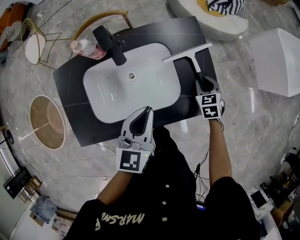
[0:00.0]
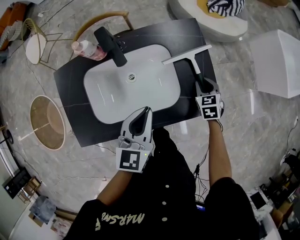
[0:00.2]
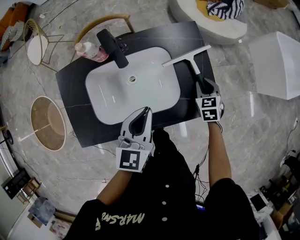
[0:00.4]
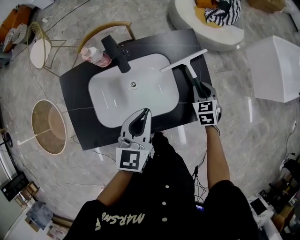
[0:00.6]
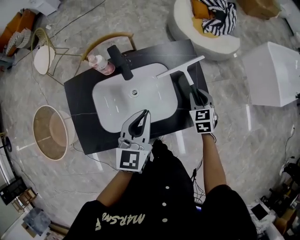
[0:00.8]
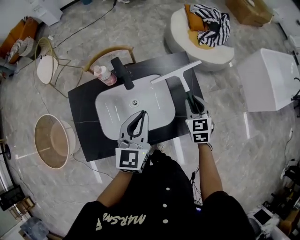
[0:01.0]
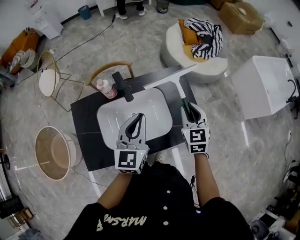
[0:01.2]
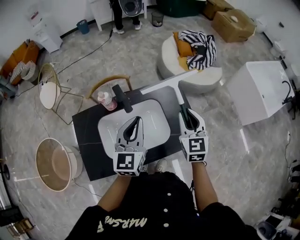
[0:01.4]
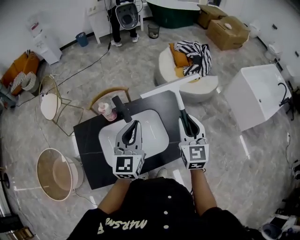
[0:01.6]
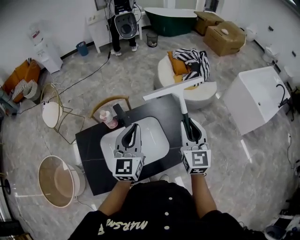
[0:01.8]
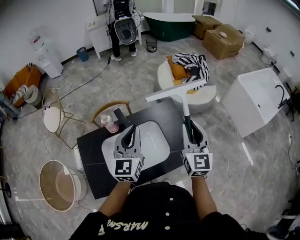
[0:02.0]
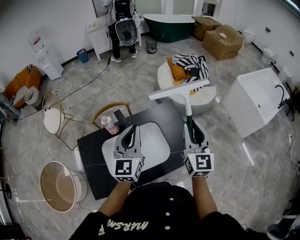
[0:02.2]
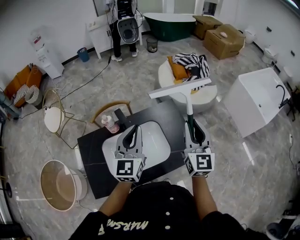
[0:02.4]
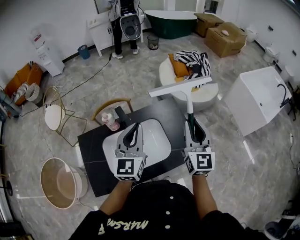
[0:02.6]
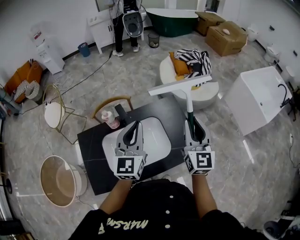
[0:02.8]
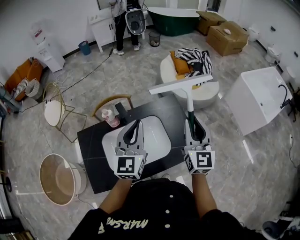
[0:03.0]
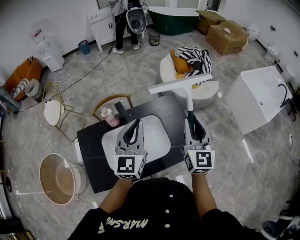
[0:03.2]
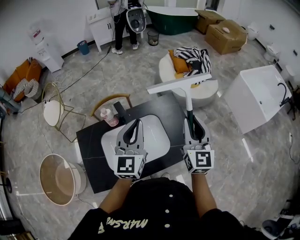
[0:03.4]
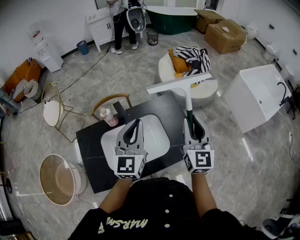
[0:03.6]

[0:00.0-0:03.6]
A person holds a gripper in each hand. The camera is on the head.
0:00.0 to 0:01.8: The left gripper heads upward, covering roughly 20 cm, and changes its angle by approximately 20 degrees. The right gripper shifts about 35 cm upward, and angles its fingers upward, by roughly 50 degrees.
0:01.8 to 0:03.6: The grippers stay close to where they were, moving slightly.

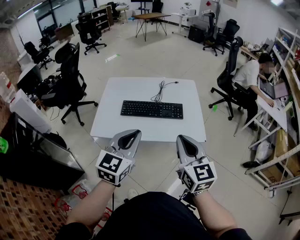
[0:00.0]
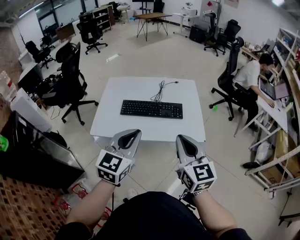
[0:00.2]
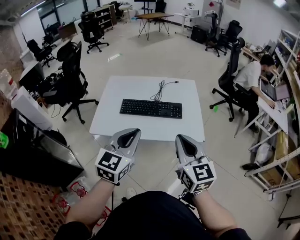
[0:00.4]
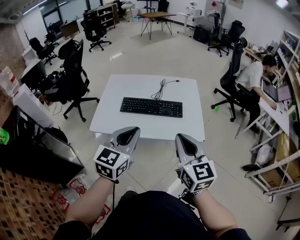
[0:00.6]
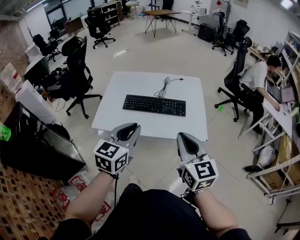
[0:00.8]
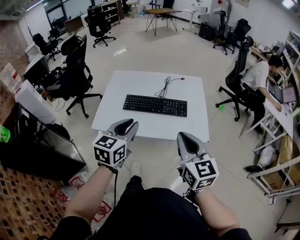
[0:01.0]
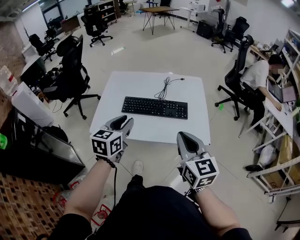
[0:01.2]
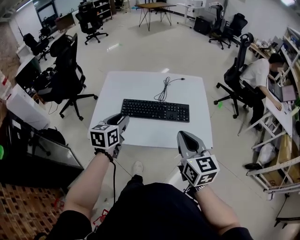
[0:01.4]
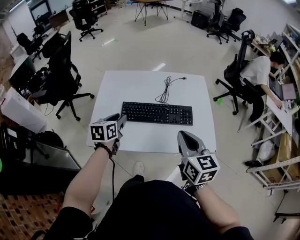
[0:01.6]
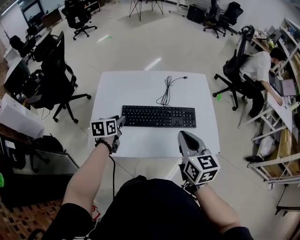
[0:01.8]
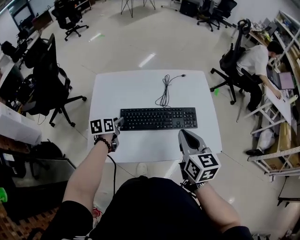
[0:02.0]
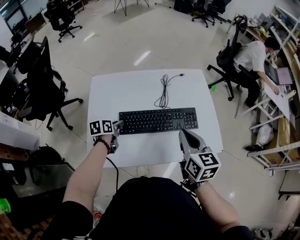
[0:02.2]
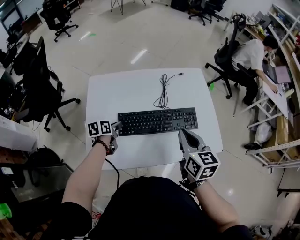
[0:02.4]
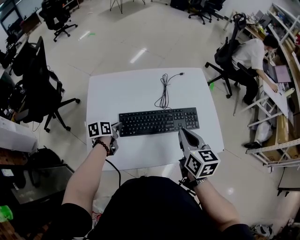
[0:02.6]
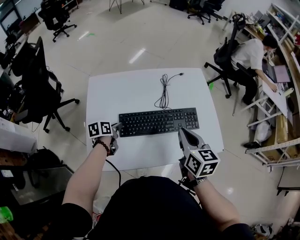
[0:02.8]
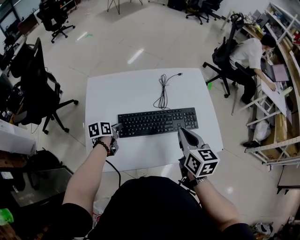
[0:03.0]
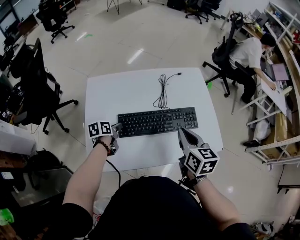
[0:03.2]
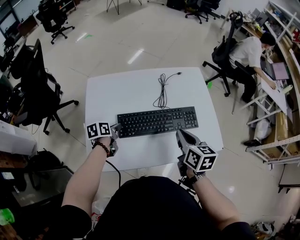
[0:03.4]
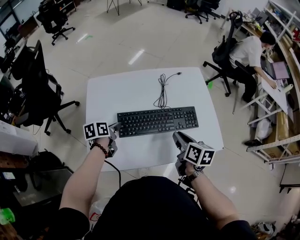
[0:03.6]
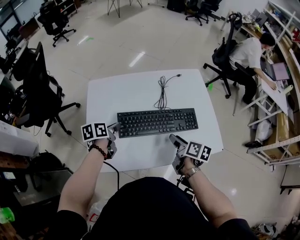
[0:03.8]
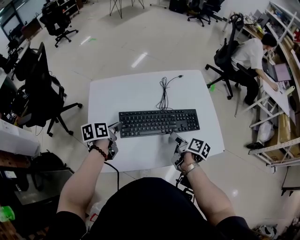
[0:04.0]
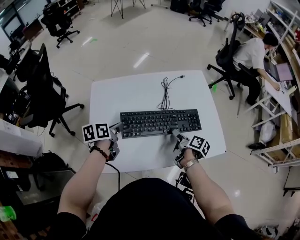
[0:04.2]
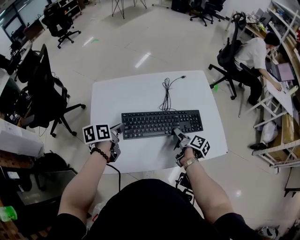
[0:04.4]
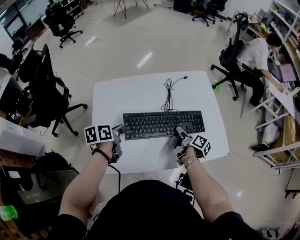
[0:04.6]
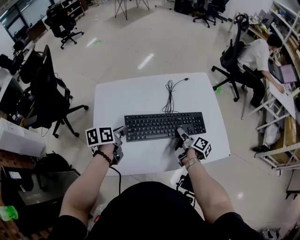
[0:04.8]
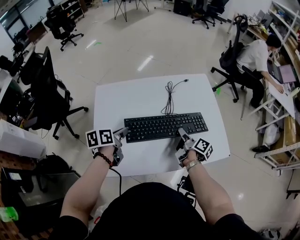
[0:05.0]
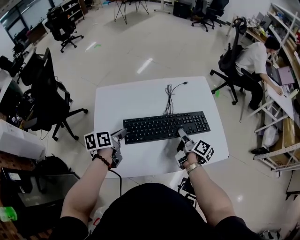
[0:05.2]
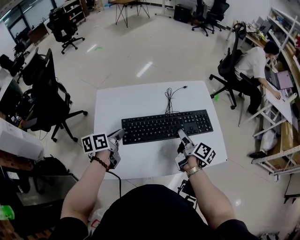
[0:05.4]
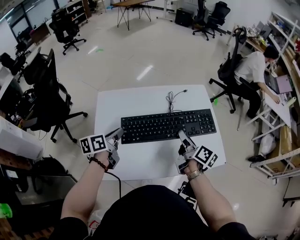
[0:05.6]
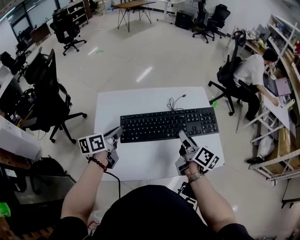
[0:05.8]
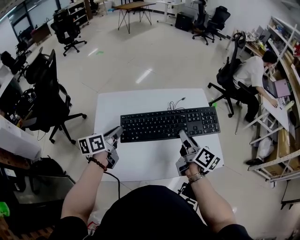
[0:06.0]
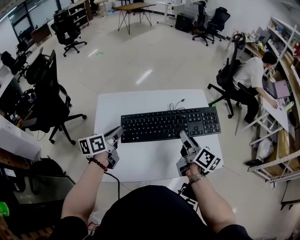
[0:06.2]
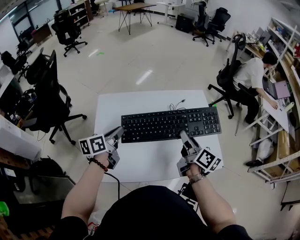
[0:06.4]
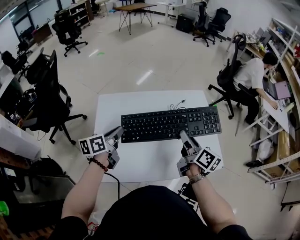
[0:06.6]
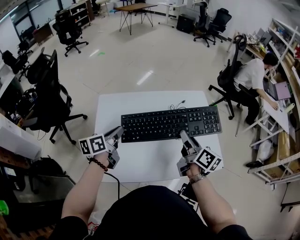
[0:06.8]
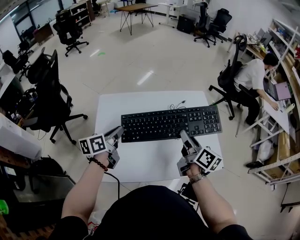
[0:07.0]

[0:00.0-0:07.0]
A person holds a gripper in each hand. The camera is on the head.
0:00.0 to 0:01.4: The left gripper is displaced forward, downward and to the left by approximately 25 cm, rotates approximately 30 degrees, and opens up. The right gripper goes roughly 10 cm forward and downward.
0:01.4 to 0:02.8: The left gripper is displaced downward, forward and to the left by roughly 30 cm, and turns by some 40 degrees, while the right gripper is displaced forward, downward and to the left by roughly 20 cm, and turns by roughly 20 degrees.
0:02.8 to 0:04.2: The right gripper shifts roughly 15 cm downward, rolls clockwise, seen from behind, by about 60 degrees, and opens up. The left gripper shifts roughly 10 cm upward.
0:04.2 to 0:05.6: The right gripper is displaced upward by some 15 cm, and rotates roughly 20 degrees. The left gripper heads upward, covering some 5 cm.
0:05.6 to 0:07.0: The right gripper is displaced upward by roughly 5 cm.

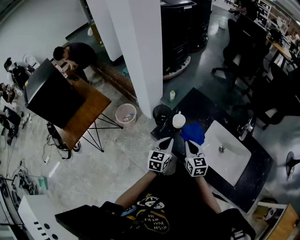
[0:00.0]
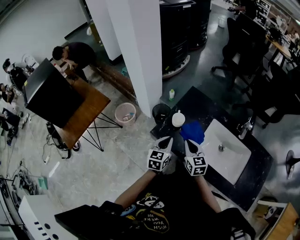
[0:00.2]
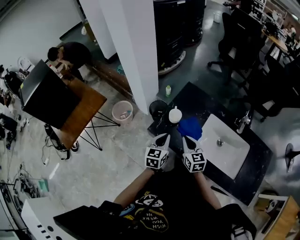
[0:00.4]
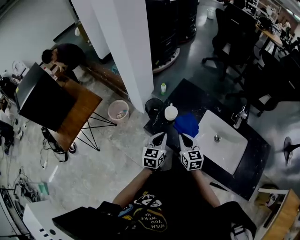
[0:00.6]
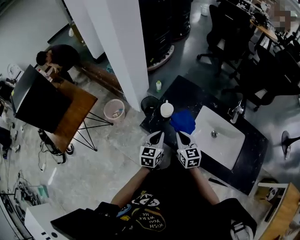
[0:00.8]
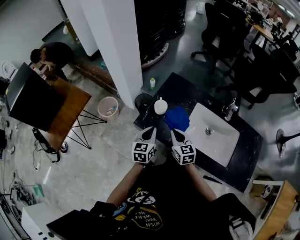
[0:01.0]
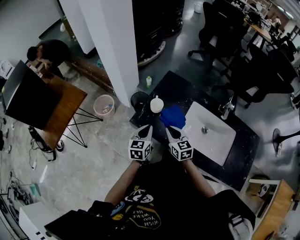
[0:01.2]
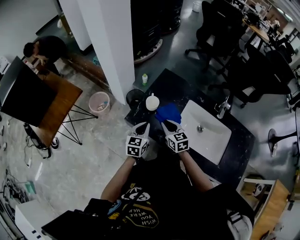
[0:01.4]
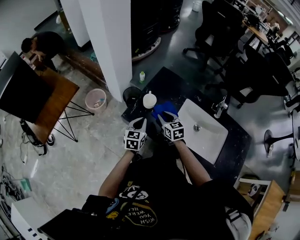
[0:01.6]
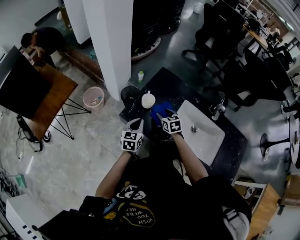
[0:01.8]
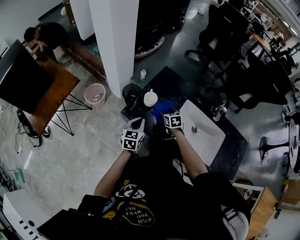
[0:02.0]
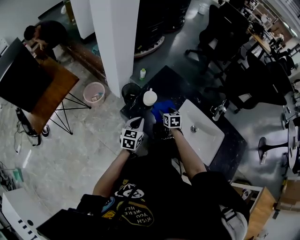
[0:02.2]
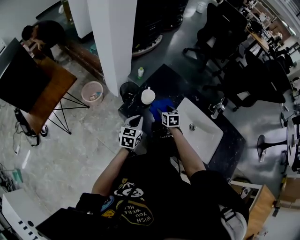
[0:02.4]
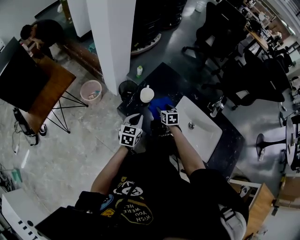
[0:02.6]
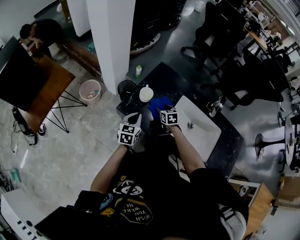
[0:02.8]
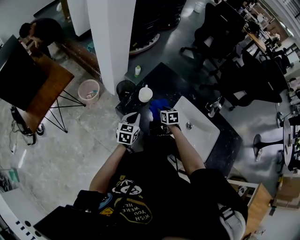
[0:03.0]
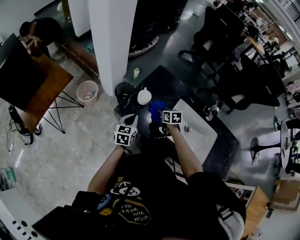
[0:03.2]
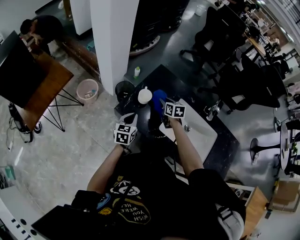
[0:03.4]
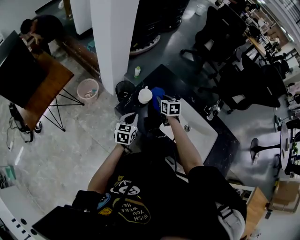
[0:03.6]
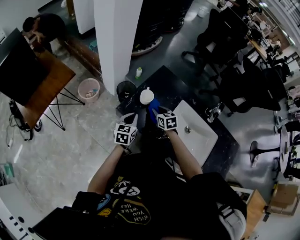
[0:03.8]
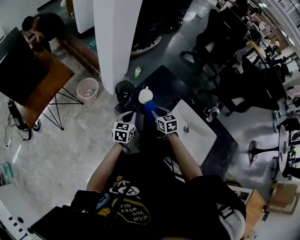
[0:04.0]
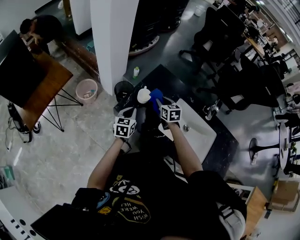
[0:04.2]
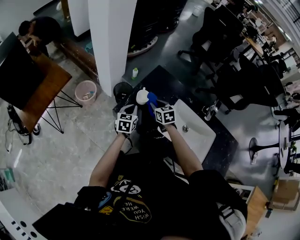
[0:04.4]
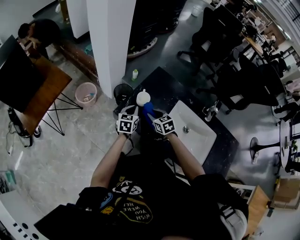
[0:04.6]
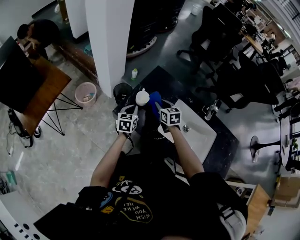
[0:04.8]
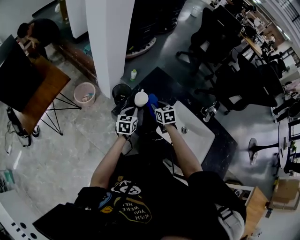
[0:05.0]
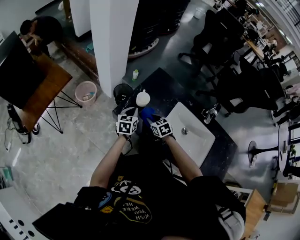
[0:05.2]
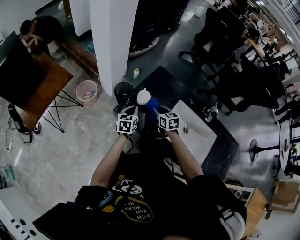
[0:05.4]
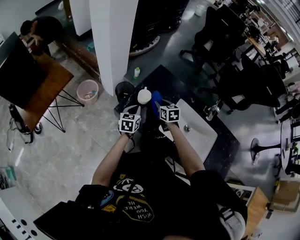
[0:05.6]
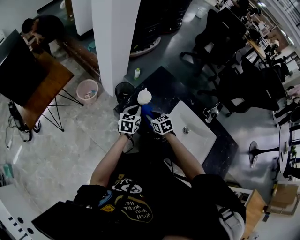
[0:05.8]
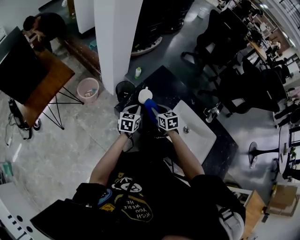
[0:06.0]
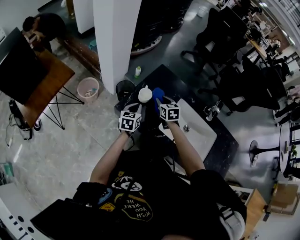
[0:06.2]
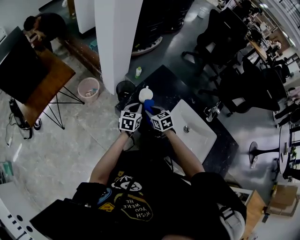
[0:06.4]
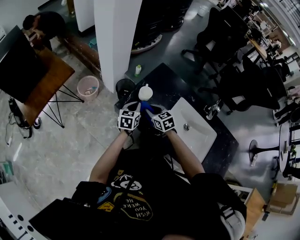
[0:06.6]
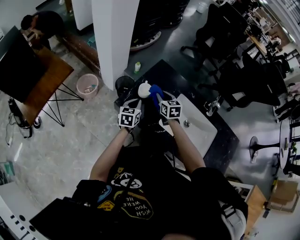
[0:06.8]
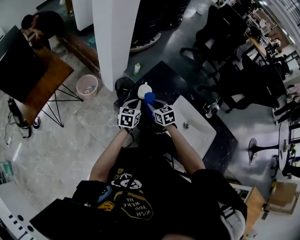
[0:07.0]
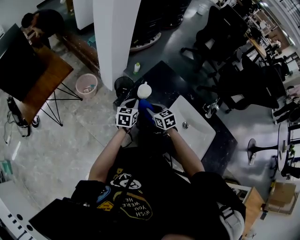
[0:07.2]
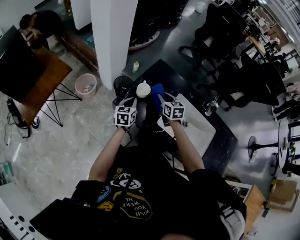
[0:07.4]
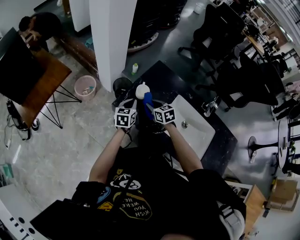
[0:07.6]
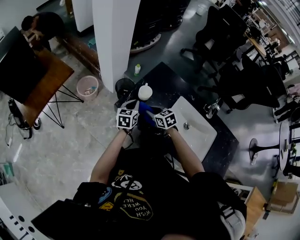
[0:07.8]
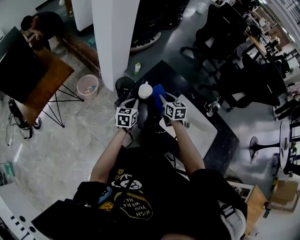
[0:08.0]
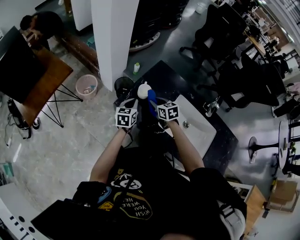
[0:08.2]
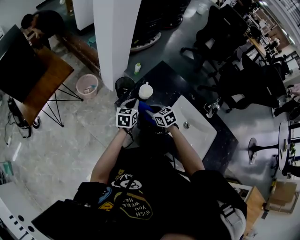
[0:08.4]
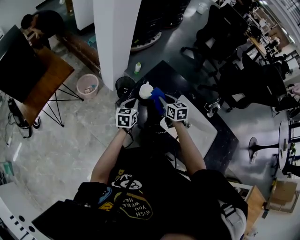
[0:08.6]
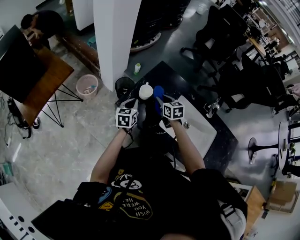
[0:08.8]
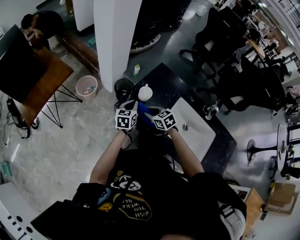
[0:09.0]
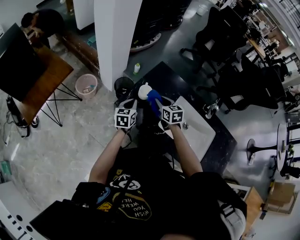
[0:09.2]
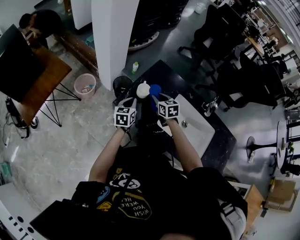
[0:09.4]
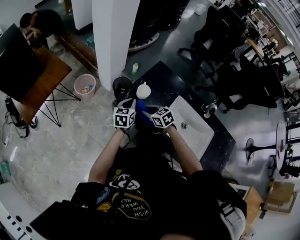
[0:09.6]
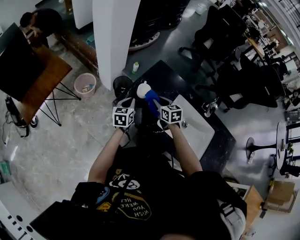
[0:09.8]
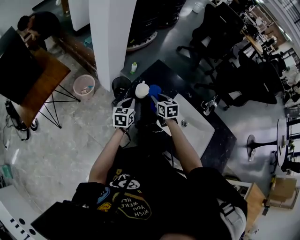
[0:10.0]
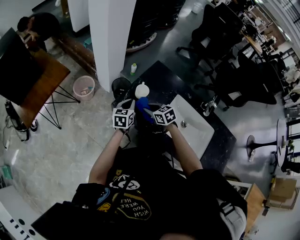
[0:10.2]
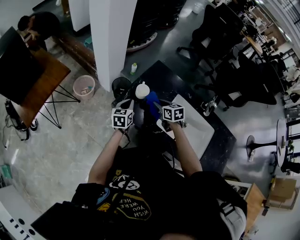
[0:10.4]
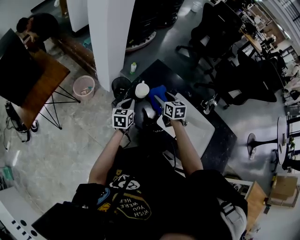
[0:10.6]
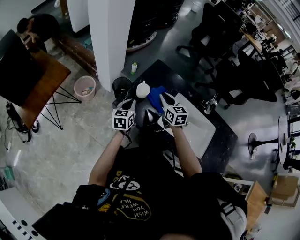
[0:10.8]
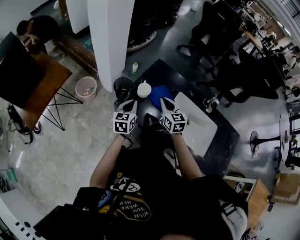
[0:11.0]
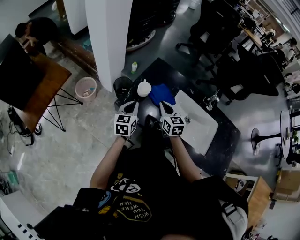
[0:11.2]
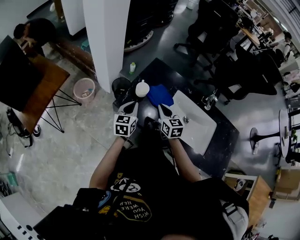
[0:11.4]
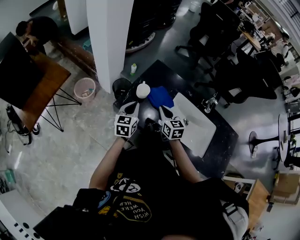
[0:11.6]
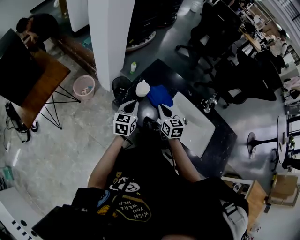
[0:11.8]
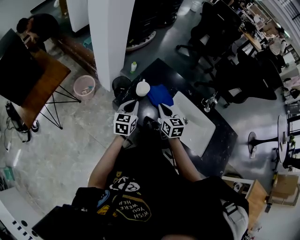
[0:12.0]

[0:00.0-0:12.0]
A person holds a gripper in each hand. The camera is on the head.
0:00.0 to 0:01.6: The left gripper is displaced downward by some 5 cm. The right gripper shifts roughly 10 cm forward and downward, and opens up.
0:01.6 to 0:03.0: The right gripper is displaced downward by approximately 10 cm, and opens, then closes again.
0:03.0 to 0:04.4: The right gripper is displaced upward by approximately 10 cm; the left gripper goes some 5 cm forward.
0:04.4 to 0:06.0: The right gripper goes forward and backward, roughly 5 cm each way, reversing 4 times.
0:06.0 to 0:07.6: The right gripper moves left and right over approximately 10 cm, changing direction 4 times.
0:07.6 to 0:09.0: The right gripper goes left and right, about 10 cm each way, reversing 3 times.
0:09.0 to 0:10.4: The right gripper moves left and right over approximately 10 cm, changing direction 4 times, and turns by about 20 degrees.
0:10.4 to 0:12.0: The right gripper heads backward and upward, covering some 5 cm, and opens, then closes once more. The left gripper goes approximately 5 cm upward.

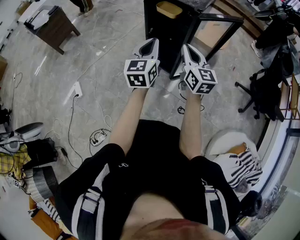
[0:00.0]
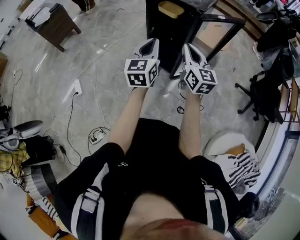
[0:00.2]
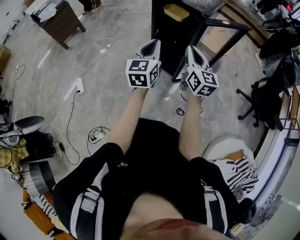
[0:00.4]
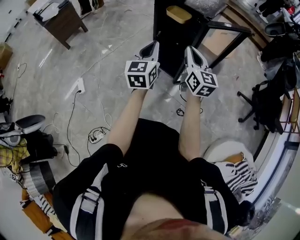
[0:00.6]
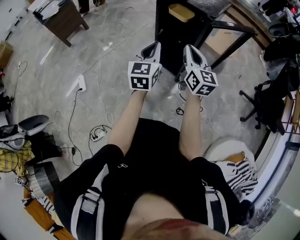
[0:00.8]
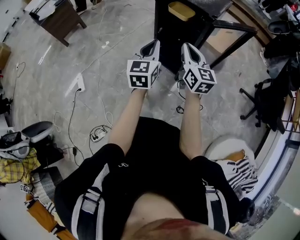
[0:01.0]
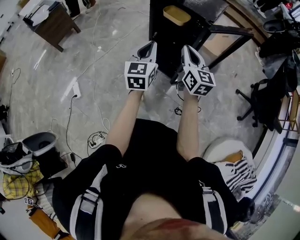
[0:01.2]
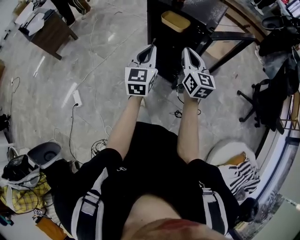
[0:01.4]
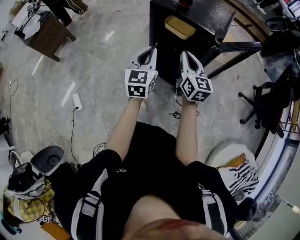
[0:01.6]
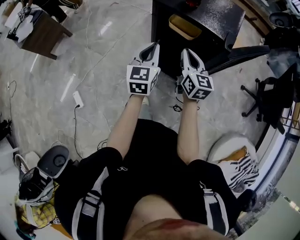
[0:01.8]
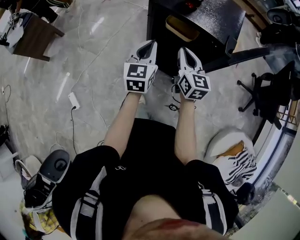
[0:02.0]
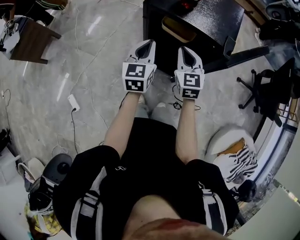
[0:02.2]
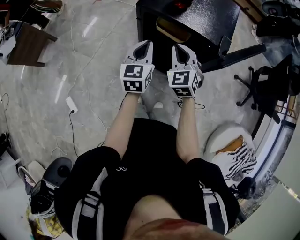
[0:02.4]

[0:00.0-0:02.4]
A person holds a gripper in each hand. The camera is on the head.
0:00.0 to 0:01.2: Both grippers move forward, about 10 cm.
0:01.2 to 0:02.4: Both grippers move forward, about 25 cm. The right gripper changes its angle by roughly 50 degrees.
